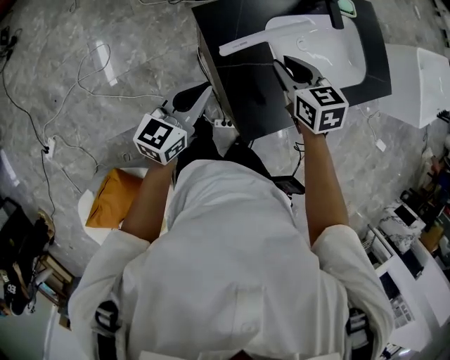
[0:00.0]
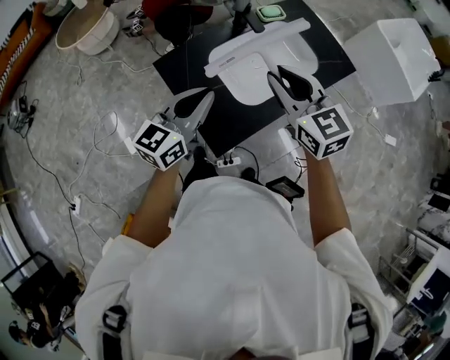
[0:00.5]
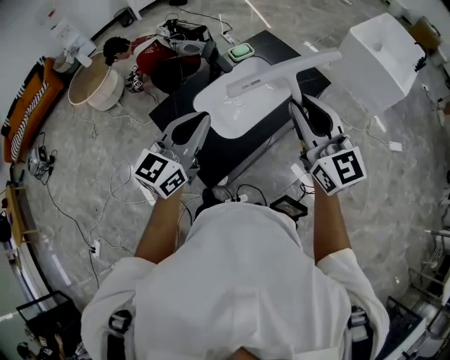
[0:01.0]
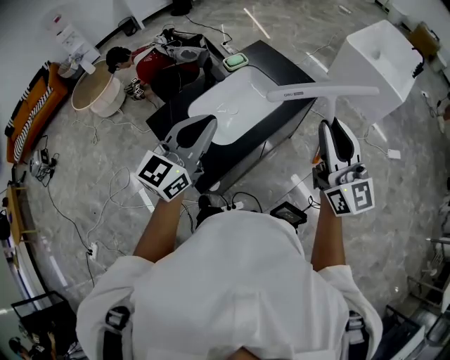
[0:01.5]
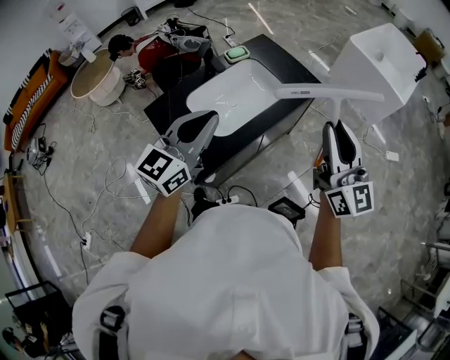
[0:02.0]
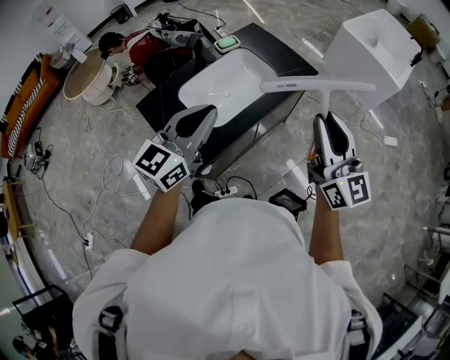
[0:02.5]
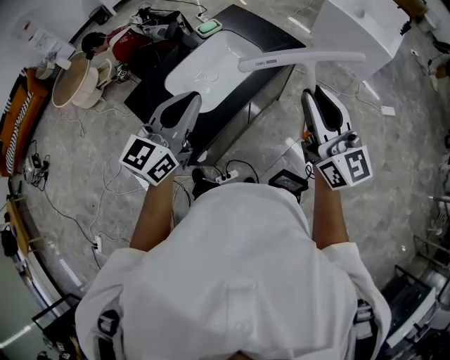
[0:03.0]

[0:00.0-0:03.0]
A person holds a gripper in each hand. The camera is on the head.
0.0 to 1.5 s: Both grippers travel together to the right and upward, approximately 50 cm. The right gripper tips its fingers upward by about 60 degrees. Meanwhile the left gripper swivels about 30 degrees.
1.5 to 3.0 s: The grippers stay close to where they were, moving slightly.

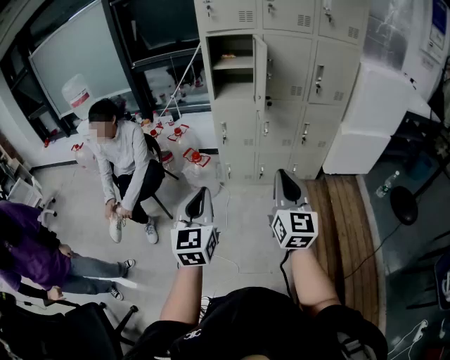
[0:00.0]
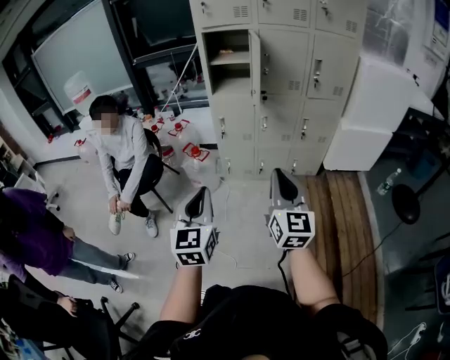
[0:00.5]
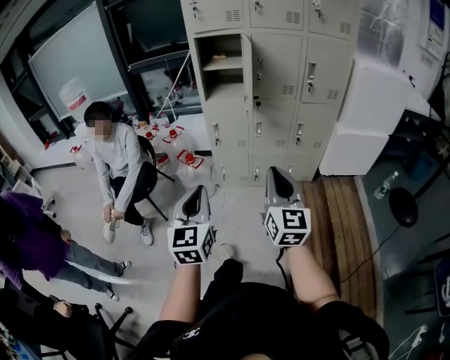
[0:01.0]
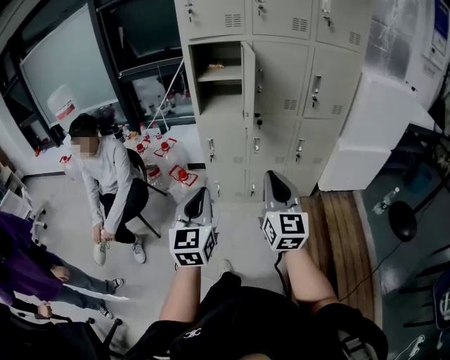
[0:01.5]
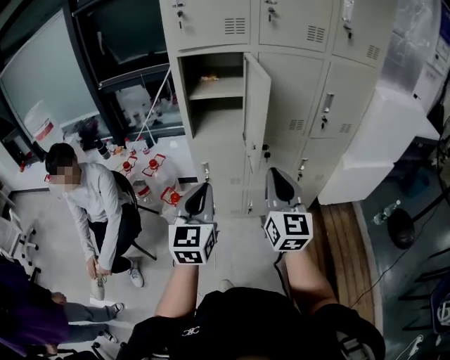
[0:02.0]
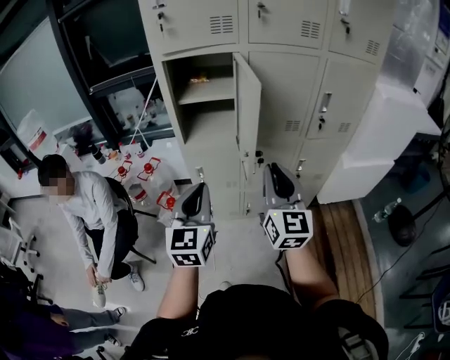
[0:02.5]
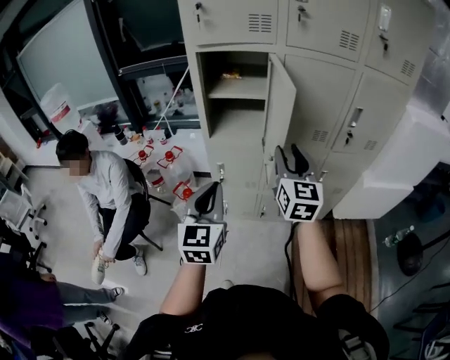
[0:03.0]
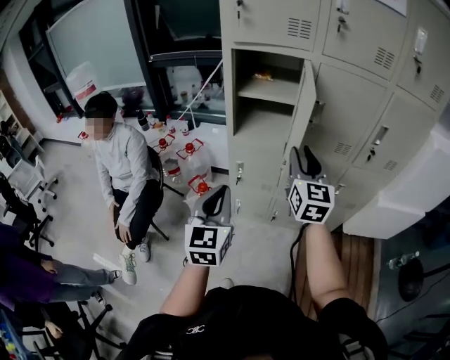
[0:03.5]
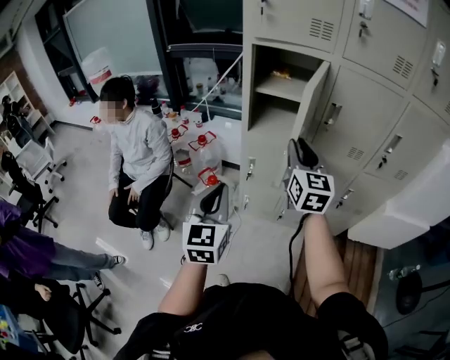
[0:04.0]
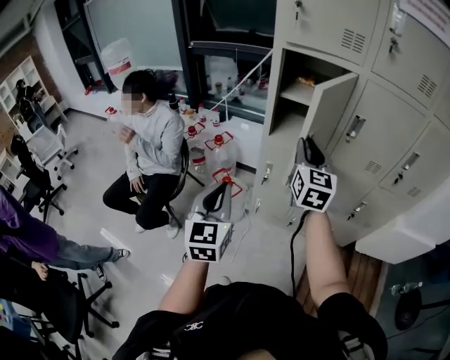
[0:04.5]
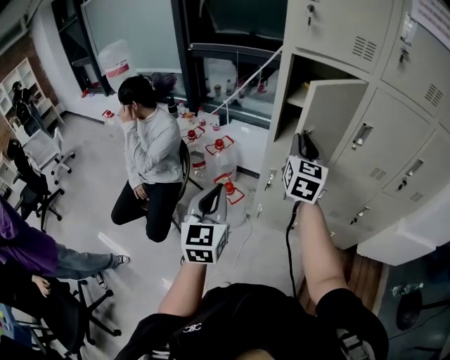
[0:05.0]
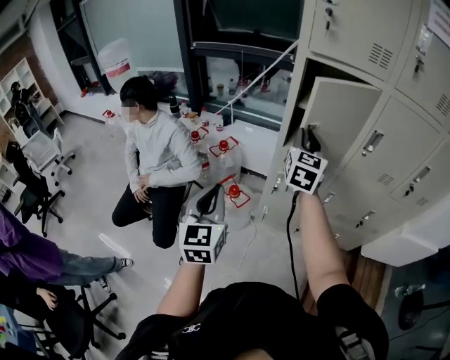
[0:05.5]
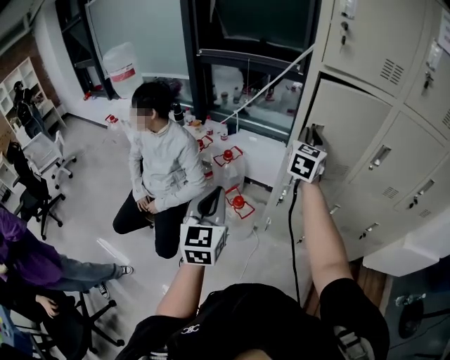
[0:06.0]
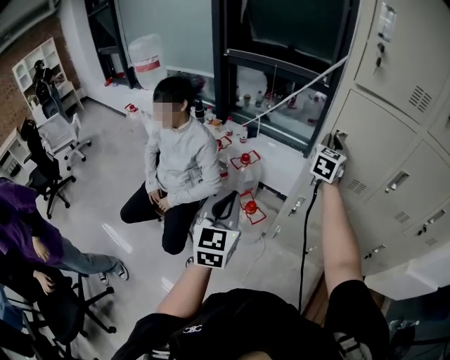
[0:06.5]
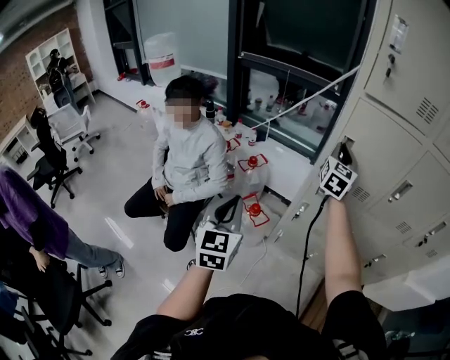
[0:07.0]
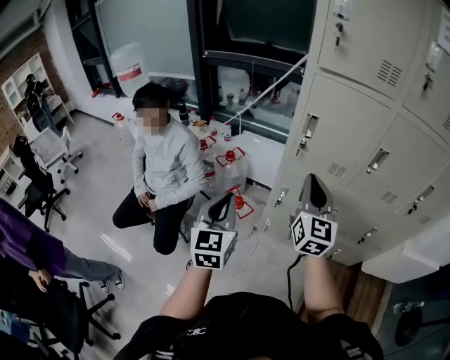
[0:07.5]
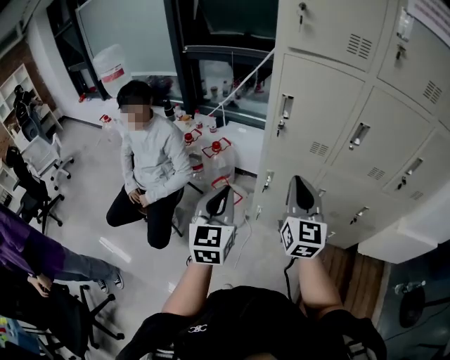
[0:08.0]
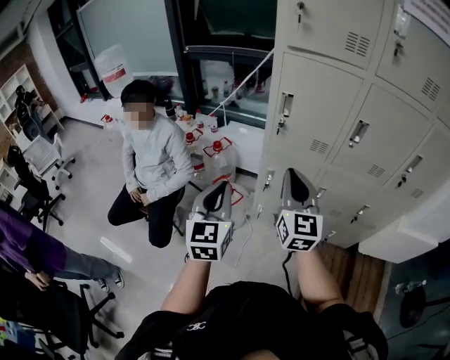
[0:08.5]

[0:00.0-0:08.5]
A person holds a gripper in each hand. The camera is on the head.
0.0 to 2.0 s: Both grippers travel together forward, some 35 cm.
2.0 to 4.0 s: The left gripper shifts about 5 cm to the left; the right gripper goes roughly 15 cm forward, and opens up.
4.0 to 6.5 s: The right gripper heads forward and to the left, covering some 30 cm, while the left gripper shifts some 20 cm to the left and forward.
6.5 to 8.5 s: The left gripper moves to the right, approximately 10 cm, while the right gripper heads backward, covering approximately 30 cm, and changes its angle by some 20 degrees.

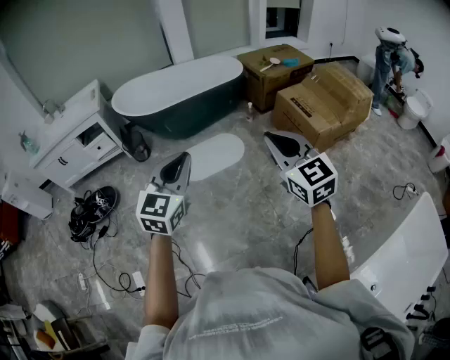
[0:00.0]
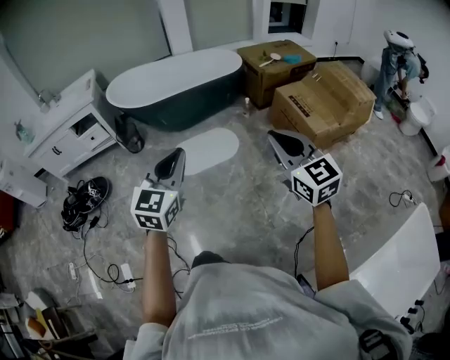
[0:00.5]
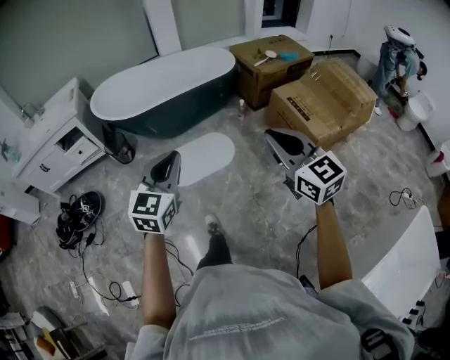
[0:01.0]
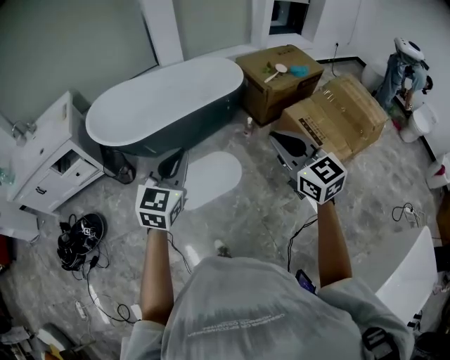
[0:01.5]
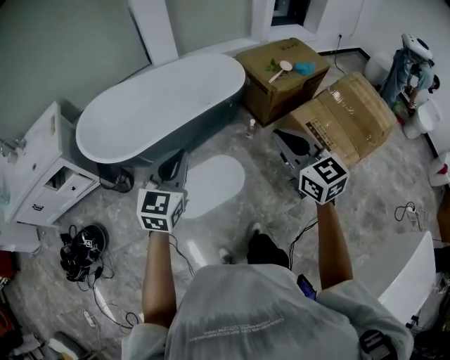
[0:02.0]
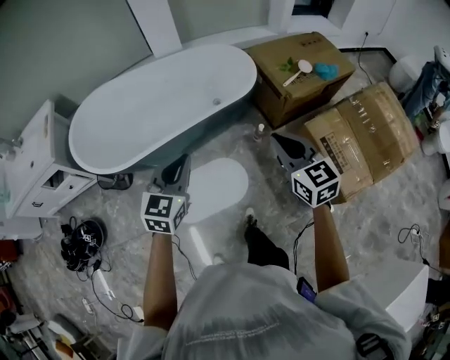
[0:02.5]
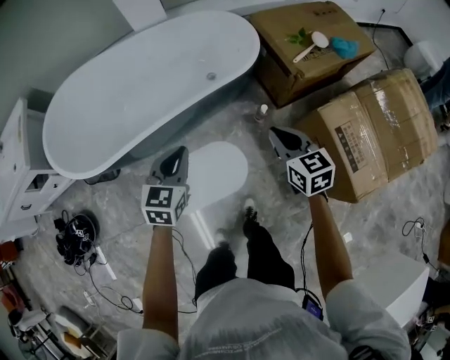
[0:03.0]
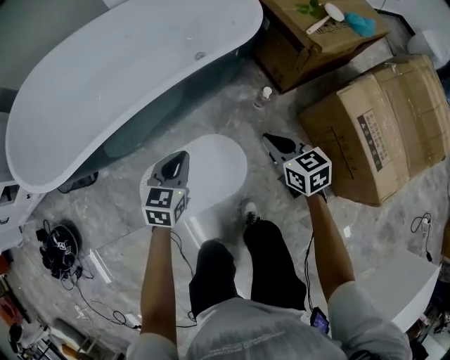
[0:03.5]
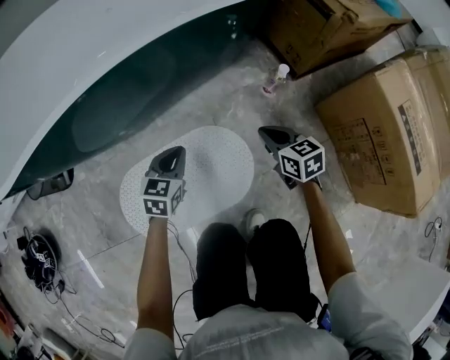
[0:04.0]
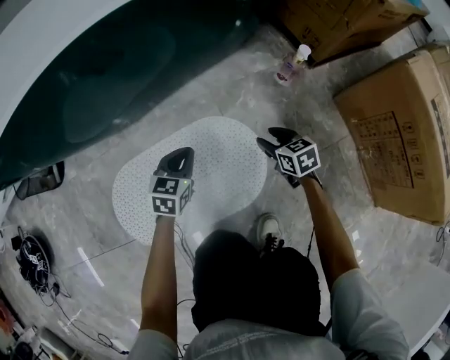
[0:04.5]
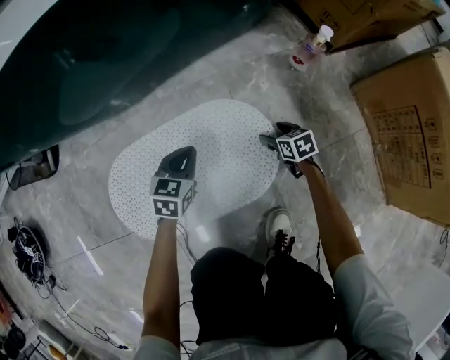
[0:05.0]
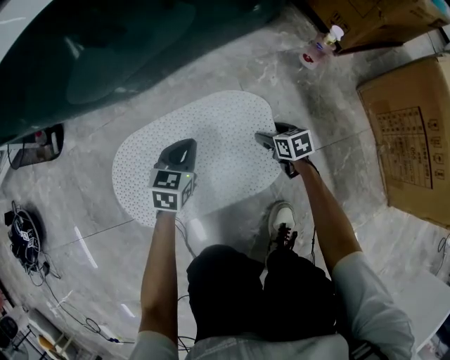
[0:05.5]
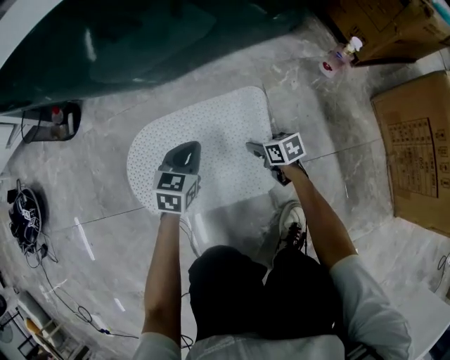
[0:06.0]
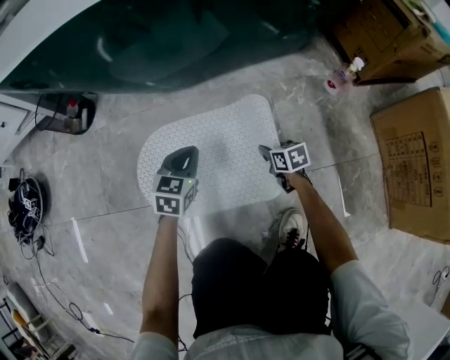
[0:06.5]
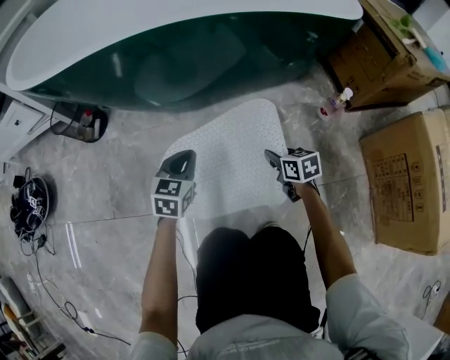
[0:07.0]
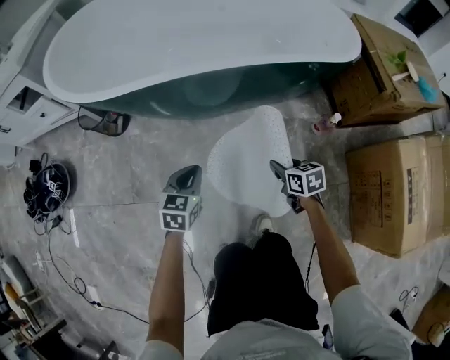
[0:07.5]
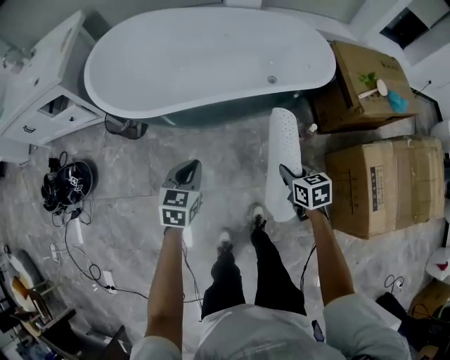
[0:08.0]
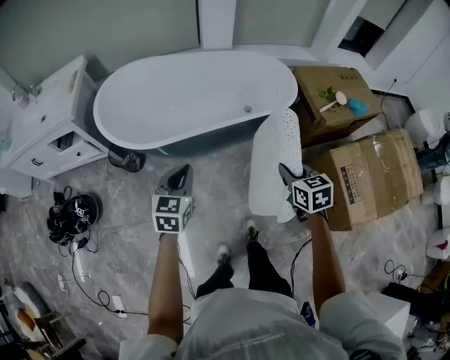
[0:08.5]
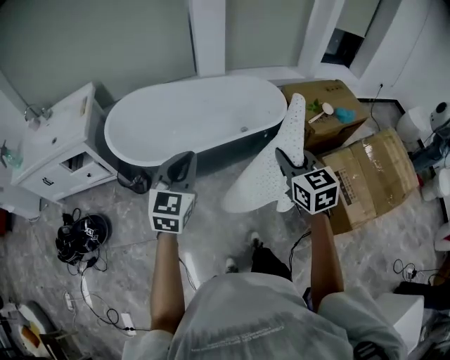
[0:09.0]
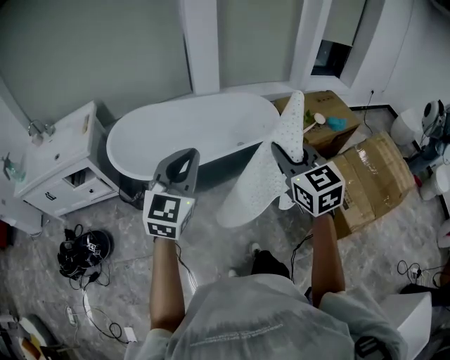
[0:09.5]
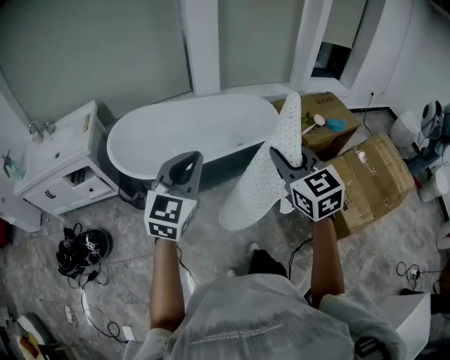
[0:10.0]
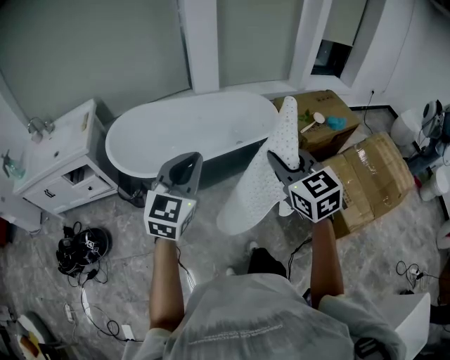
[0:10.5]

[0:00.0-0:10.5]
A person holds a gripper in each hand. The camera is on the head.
0.0 to 2.0 s: The pair of grippers is taken forward, roughly 50 cm.
2.0 to 4.0 s: The right gripper is displaced downward and forward by roughly 90 cm, and turns by some 30 degrees; the left gripper is displaced downward by about 80 cm, and rotates approximately 30 degrees.
4.0 to 6.5 s: The right gripper heads downward and to the left, covering approximately 30 cm, turns by roughly 20 degrees, and opens, then closes once more. The left gripper goes about 20 cm to the left, downward and backward.
6.5 to 8.5 s: Both grippers travel together upward, approximately 80 cm. The right gripper swivels roughly 20 degrees.
8.5 to 10.5 s: The right gripper goes approximately 30 cm upward and backward, and swivels some 30 degrees. The left gripper heads upward, covering roughly 25 cm, and changes its angle by approximately 30 degrees.

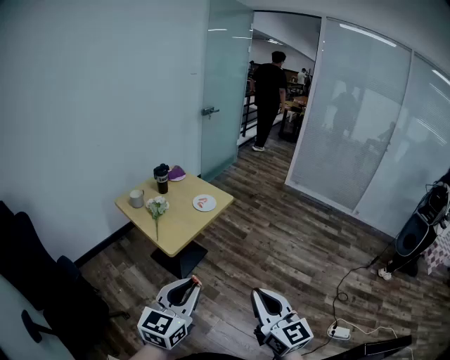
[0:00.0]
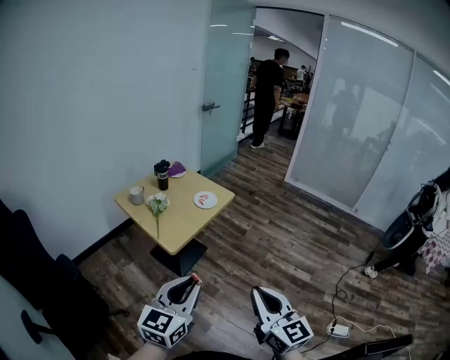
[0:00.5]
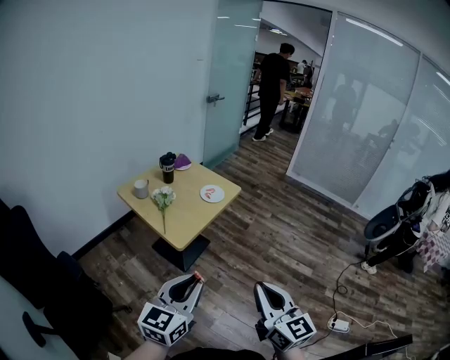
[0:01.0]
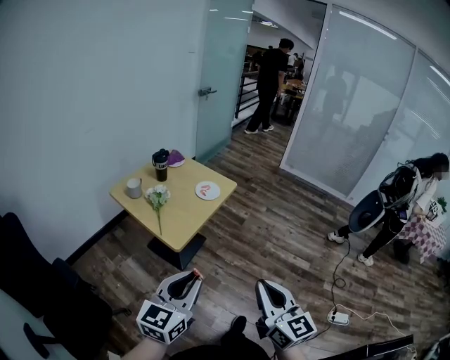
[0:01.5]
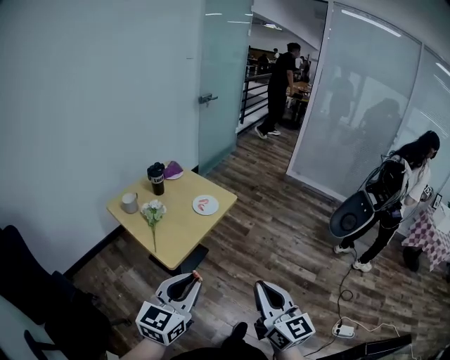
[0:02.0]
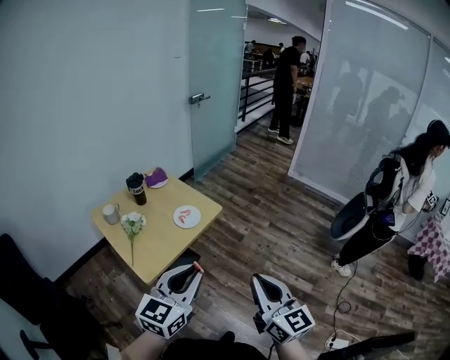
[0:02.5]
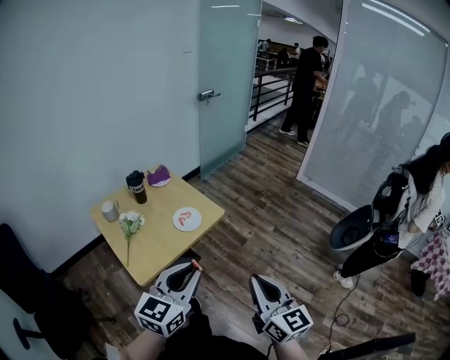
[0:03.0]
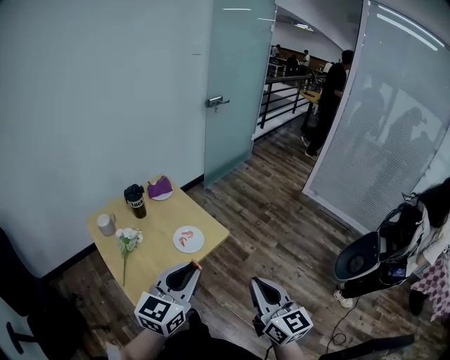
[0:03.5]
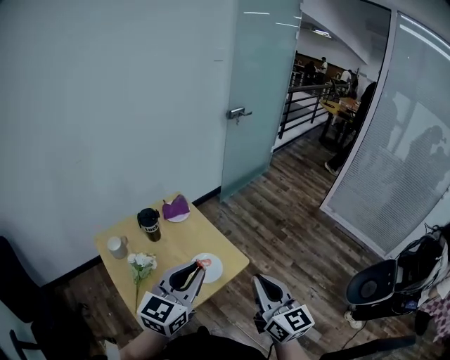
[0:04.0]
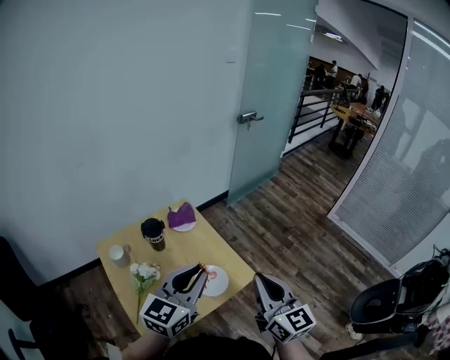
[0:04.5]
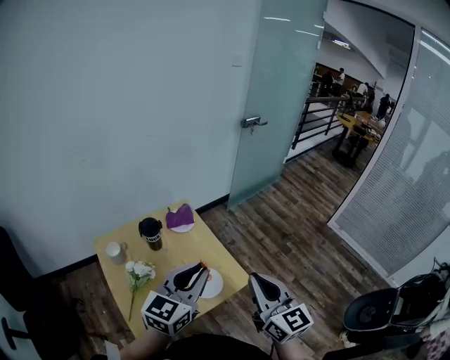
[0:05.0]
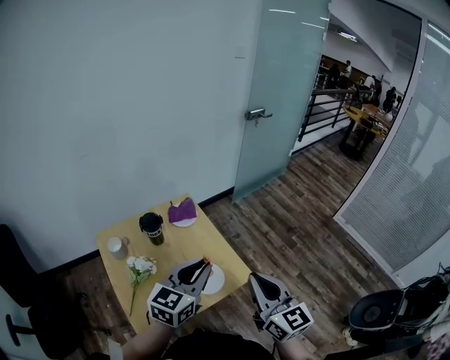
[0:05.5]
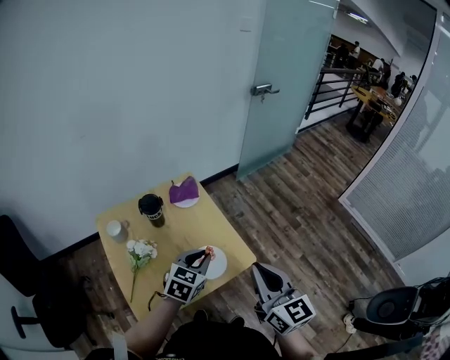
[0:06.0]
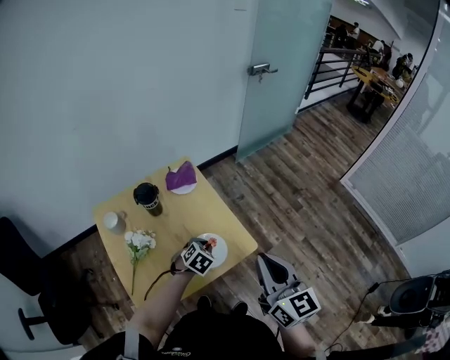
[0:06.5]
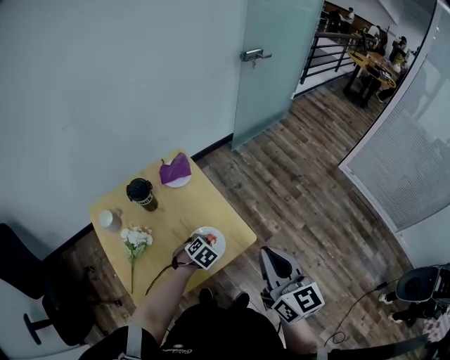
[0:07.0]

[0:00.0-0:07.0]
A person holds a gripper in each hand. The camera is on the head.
0.0 to 2.0 s: The grippers both shift forward by approximately 15 cm.
2.0 to 3.5 s: The grippers both shift forward and to the right by roughly 30 cm.
3.5 to 5.0 s: The two grippers go about 25 cm forward.
5.0 to 7.0 s: The right gripper is displaced downward by roughly 5 cm, while the left gripper shifts some 40 cm downward, and tips its fingers downward by some 60 degrees.
